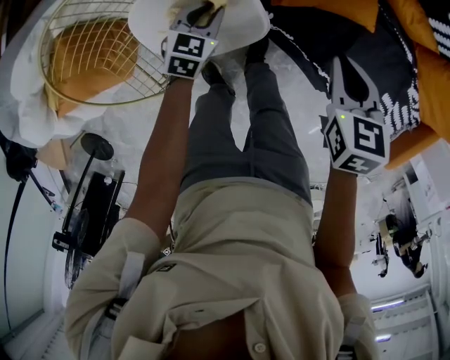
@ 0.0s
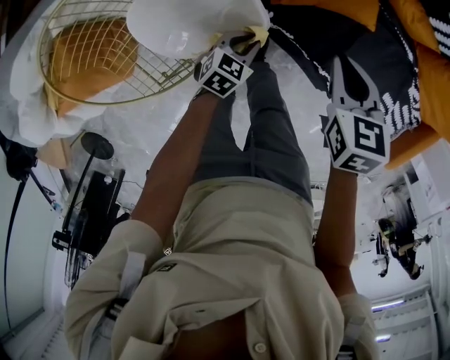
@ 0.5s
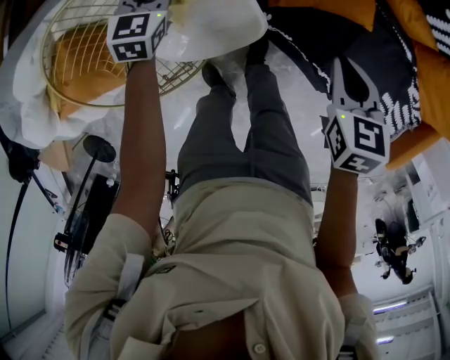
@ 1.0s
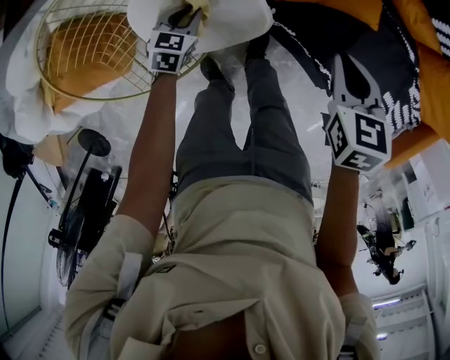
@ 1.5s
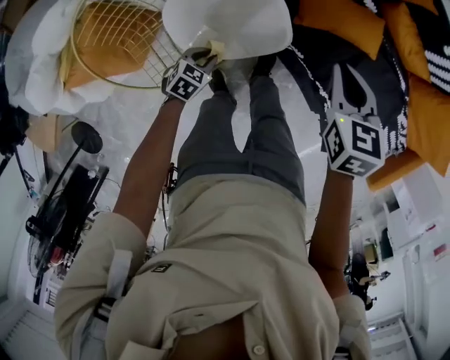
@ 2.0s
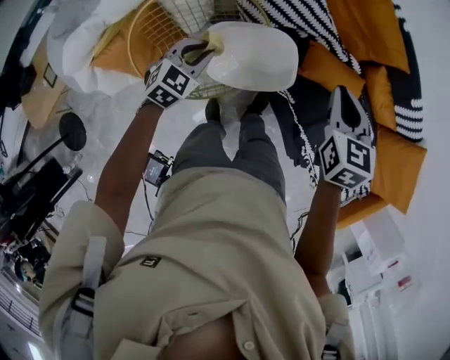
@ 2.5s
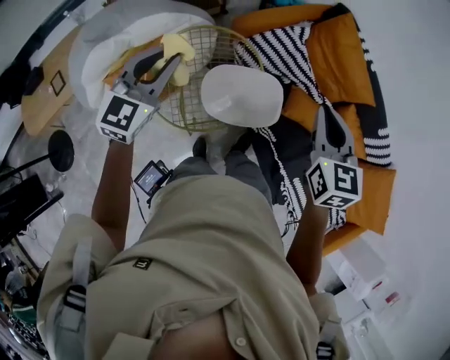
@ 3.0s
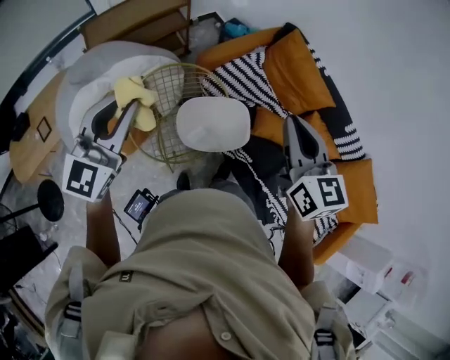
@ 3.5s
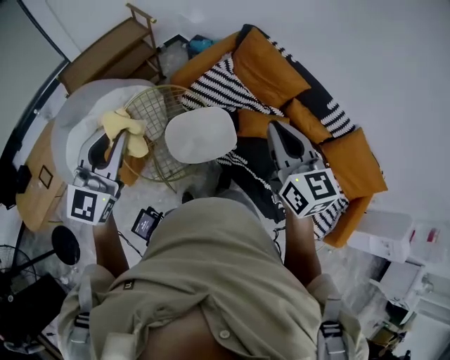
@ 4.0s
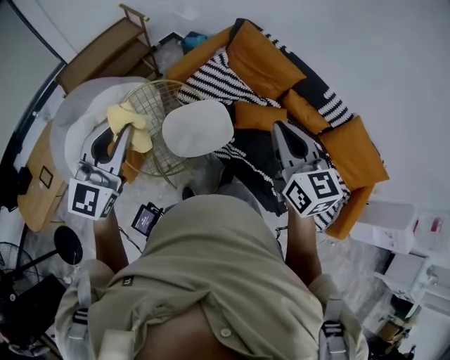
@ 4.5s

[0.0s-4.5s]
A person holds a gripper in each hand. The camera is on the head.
0.0s to 2.0s: The left gripper swings forward and backward, roughly 25 cm each way, with 2 reversals; the right gripper moves to the left and upward, some 10 cm.
2.0s to 4.5s: The right gripper goes roughly 40 cm upward, and tilts its fingers some 40 degrees upward. The left gripper travels upward by about 70 cm, and points its fingers approximately 60 degrees further upward.

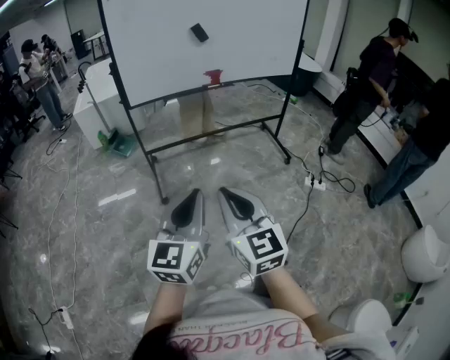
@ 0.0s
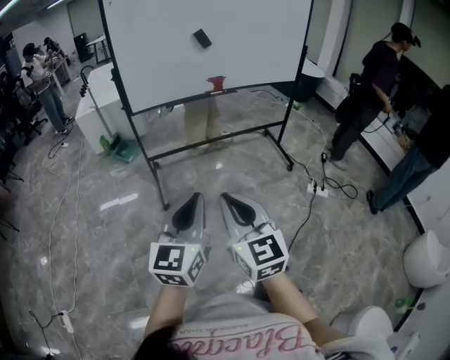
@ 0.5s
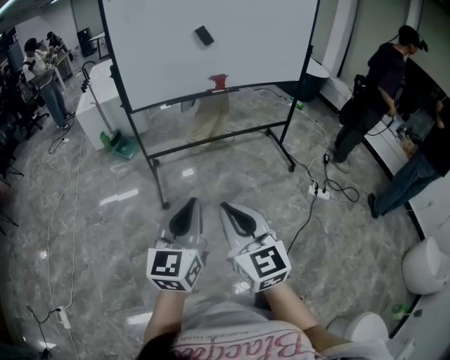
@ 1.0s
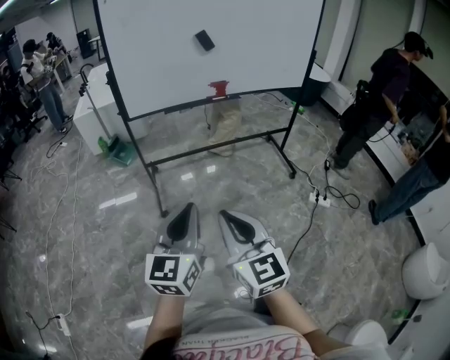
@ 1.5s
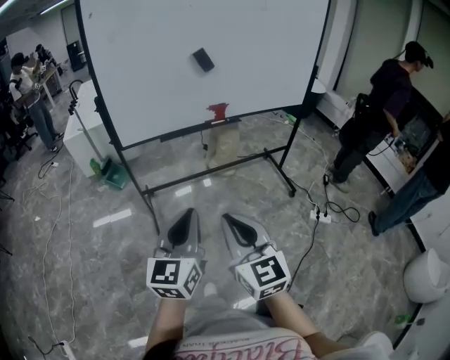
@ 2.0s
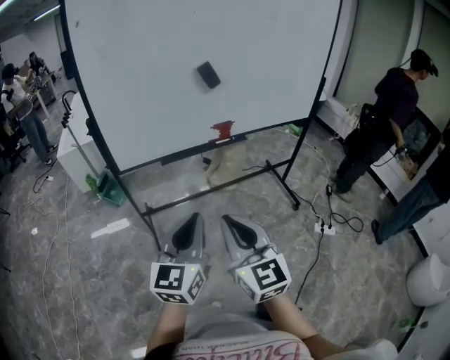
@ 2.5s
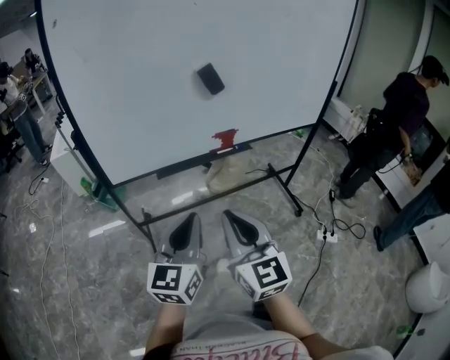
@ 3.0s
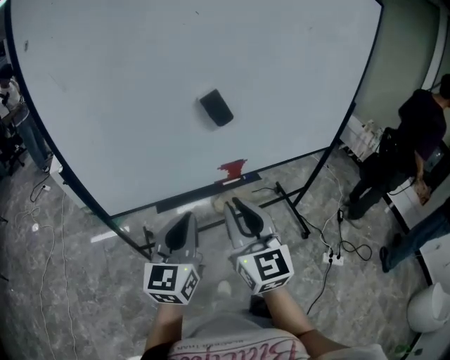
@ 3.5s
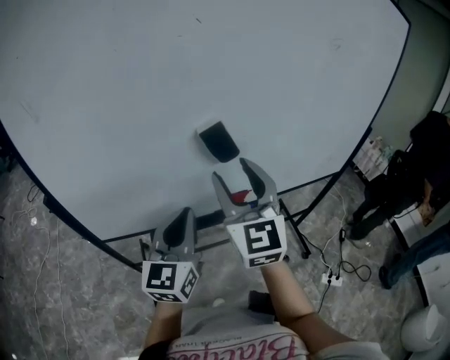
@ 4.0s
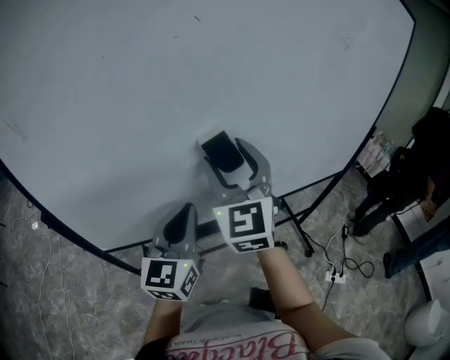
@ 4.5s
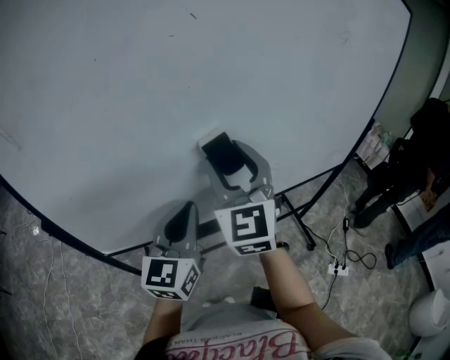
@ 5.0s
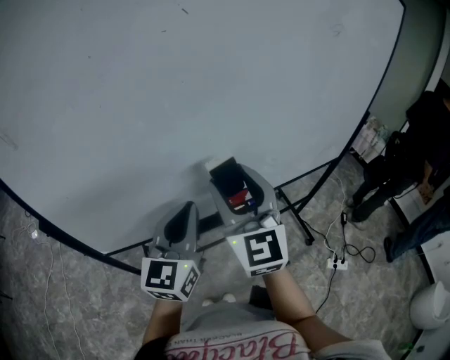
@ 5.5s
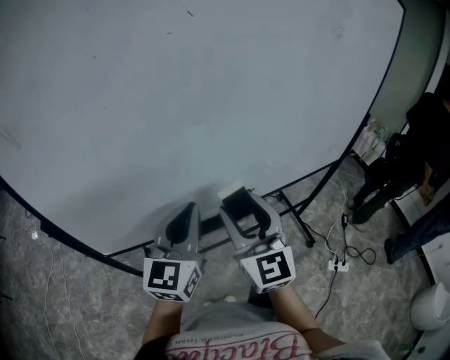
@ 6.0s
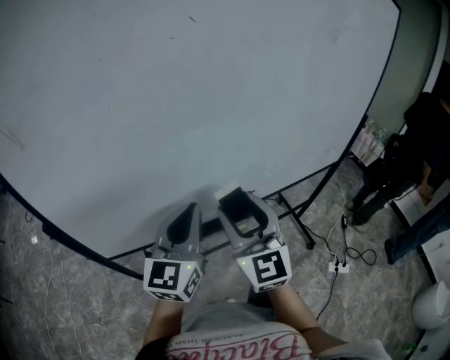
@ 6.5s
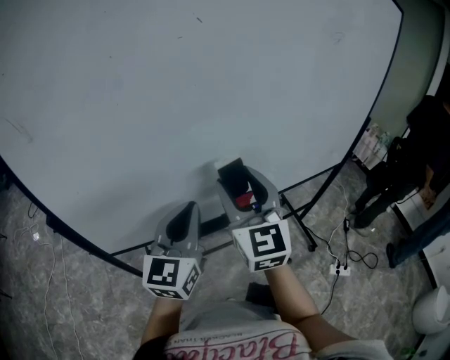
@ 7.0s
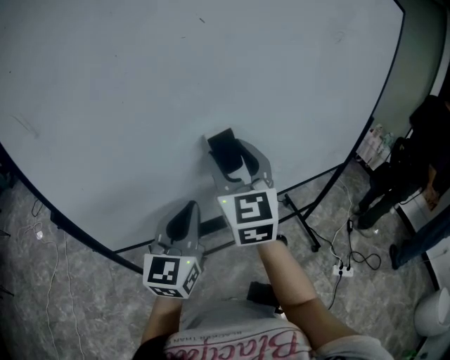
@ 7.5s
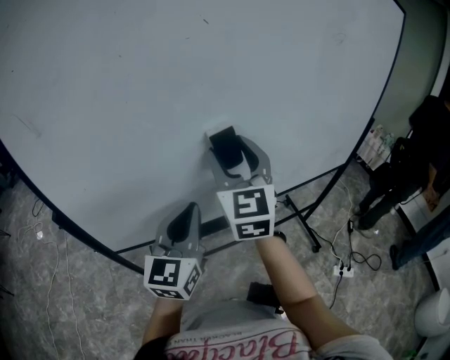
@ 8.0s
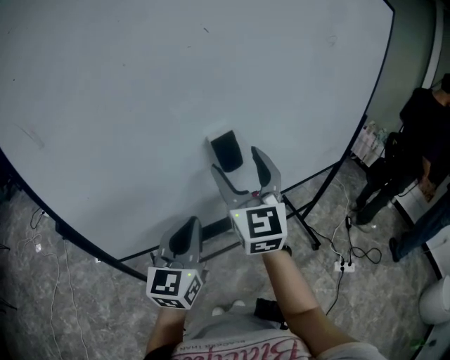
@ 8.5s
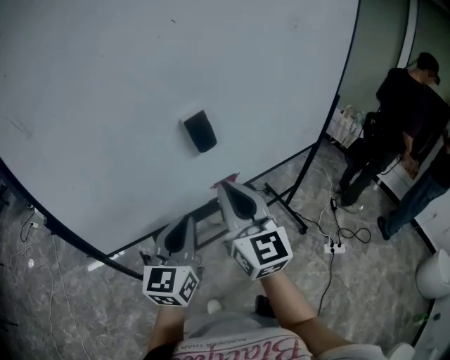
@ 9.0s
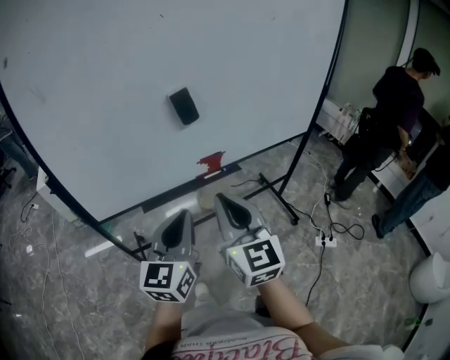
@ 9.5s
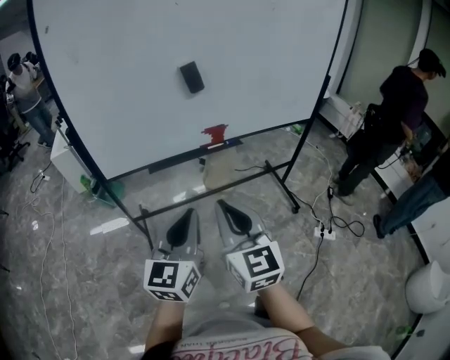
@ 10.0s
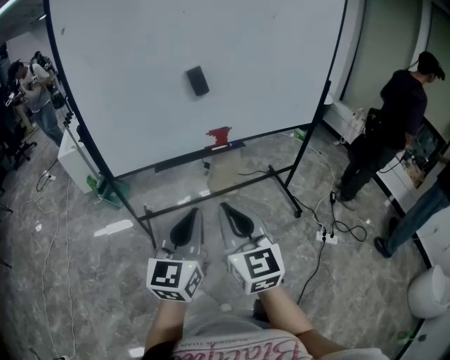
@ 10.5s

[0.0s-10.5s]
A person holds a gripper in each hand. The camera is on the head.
0.0s to 2.0s: The grippers both shift forward by about 20 cm.
2.0s to 4.0s: The pair of grippers is taken forward, roughly 50 cm. The right gripper opens.
4.0s to 6.5s: The right gripper goes roughly 5 cm downward.
6.5s to 8.5s: The right gripper is displaced upward and forward by some 10 cm.
8.5s to 10.5s: Both grippers move backward, some 30 cm. The right gripper closes up.

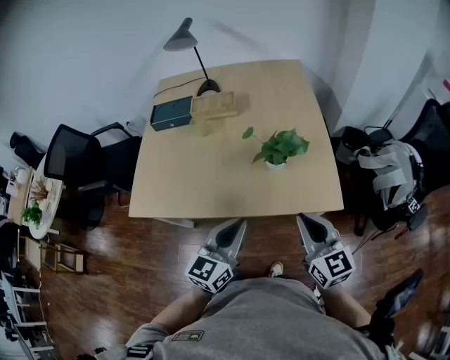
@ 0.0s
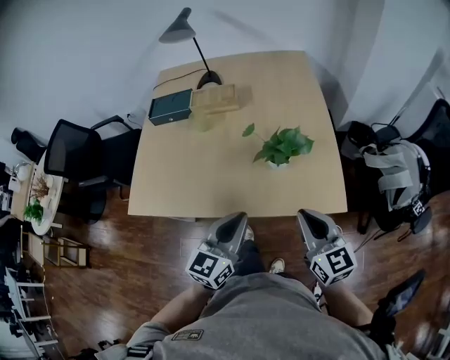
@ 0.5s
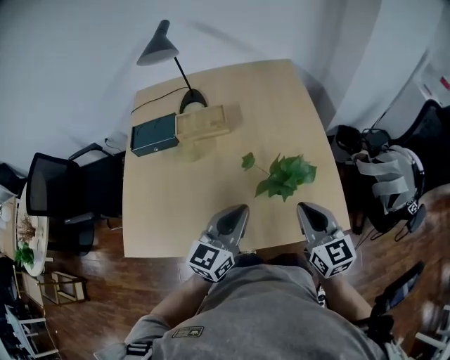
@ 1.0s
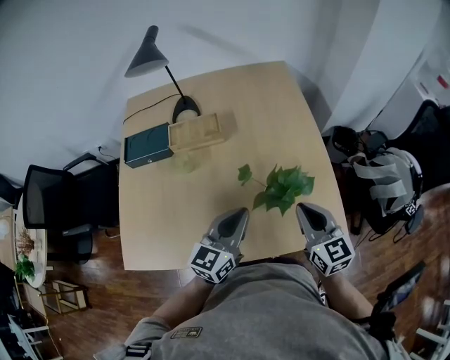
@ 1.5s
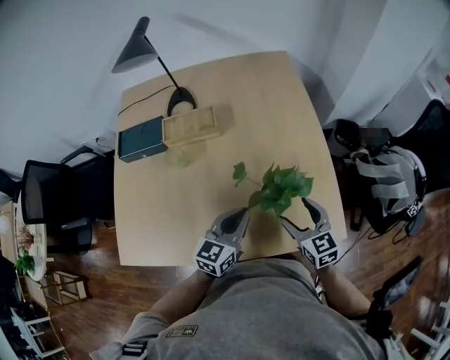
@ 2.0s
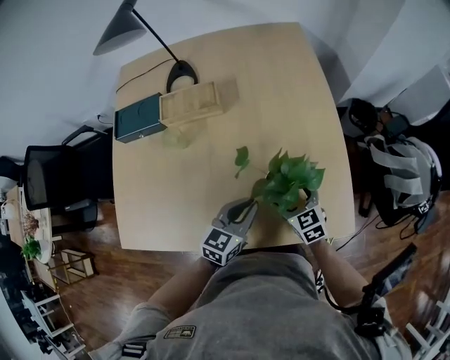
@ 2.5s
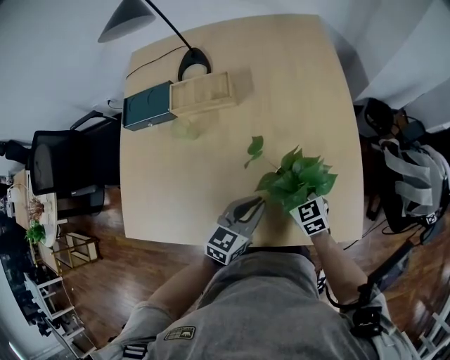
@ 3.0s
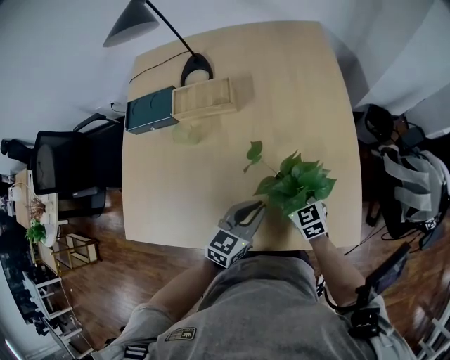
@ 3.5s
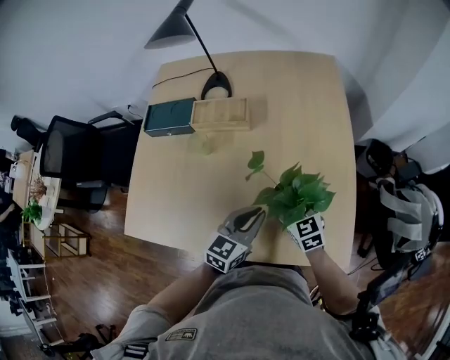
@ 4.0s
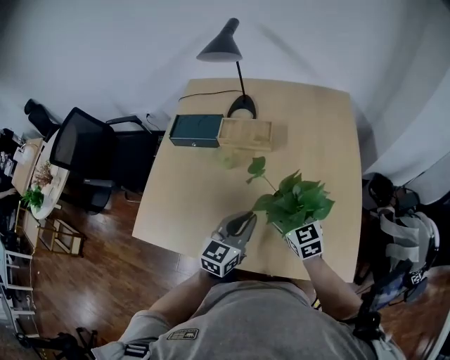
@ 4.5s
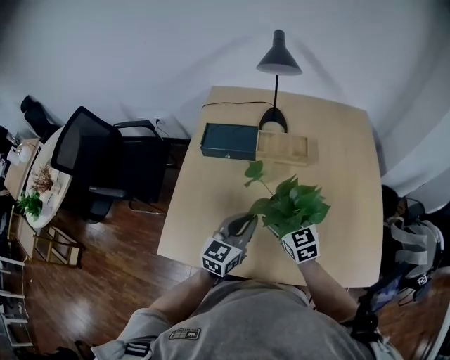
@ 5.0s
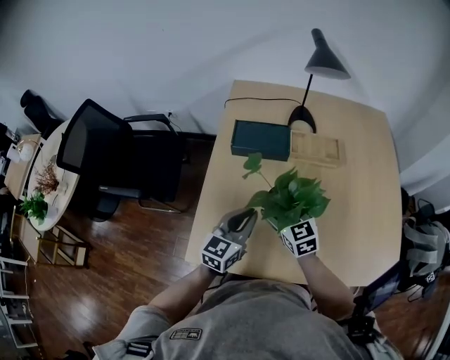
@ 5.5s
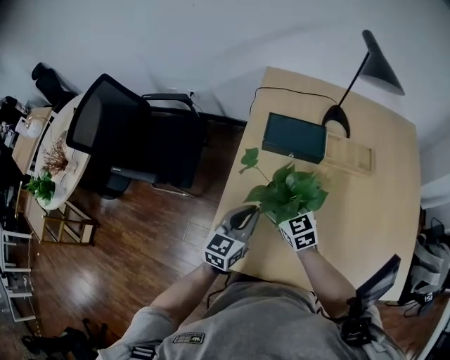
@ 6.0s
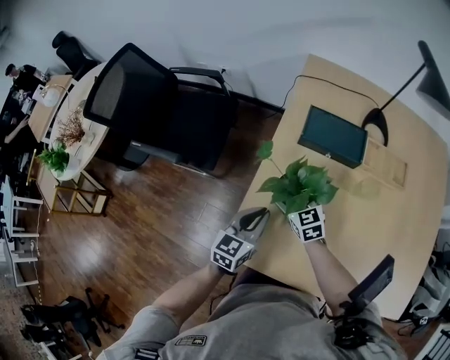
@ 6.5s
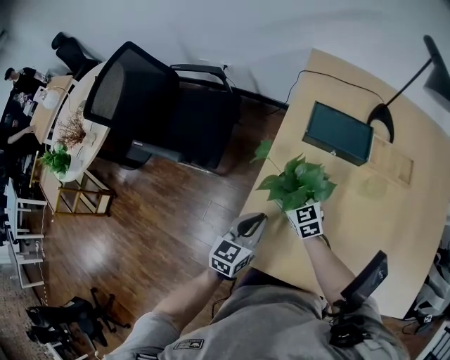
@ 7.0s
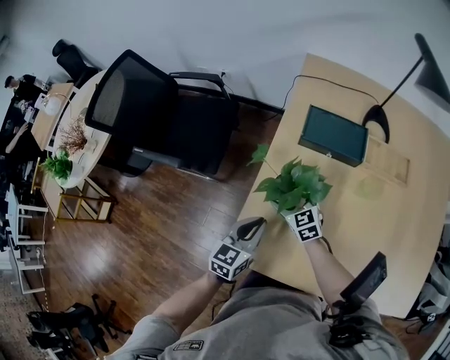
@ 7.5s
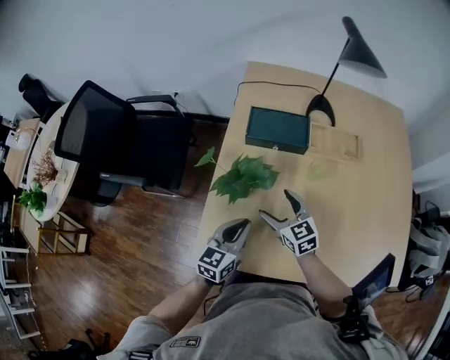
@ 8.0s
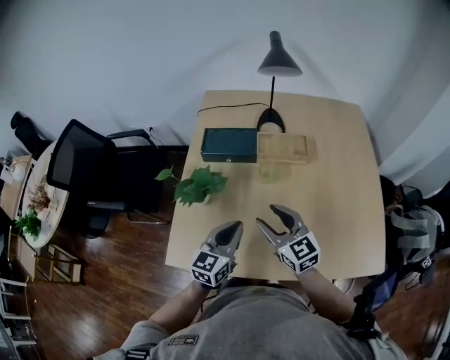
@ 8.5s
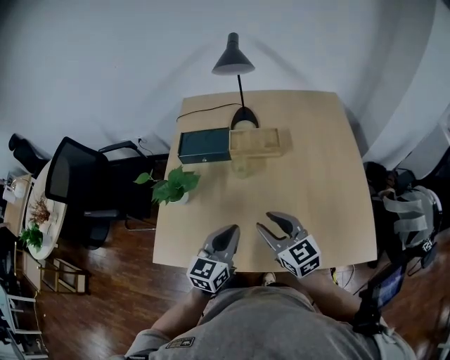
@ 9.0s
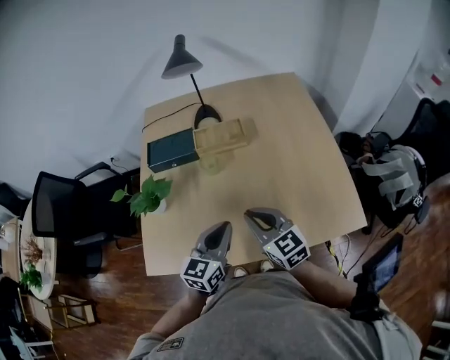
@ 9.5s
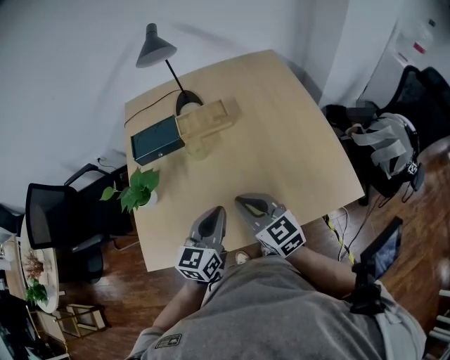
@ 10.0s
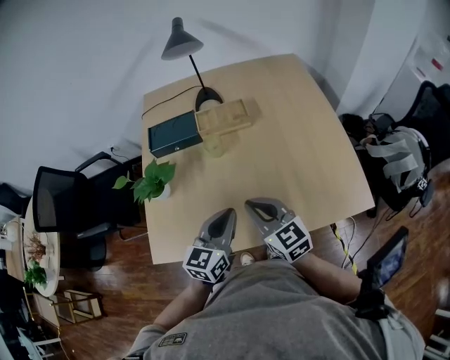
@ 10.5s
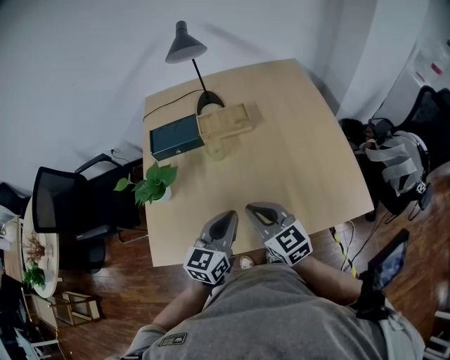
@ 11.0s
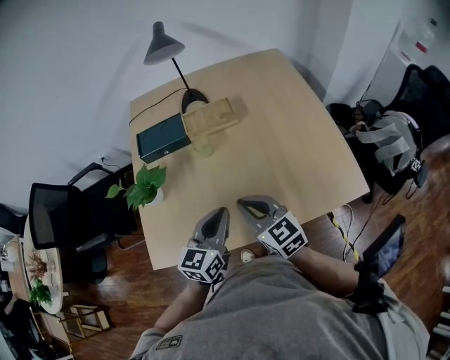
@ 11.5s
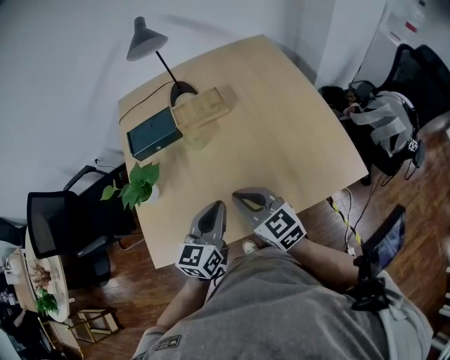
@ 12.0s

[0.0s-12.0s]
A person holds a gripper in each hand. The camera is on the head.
0.0s to 2.0s: Both grippers move forward and downward, about 25 cm. The right gripper opens.
2.0s to 4.0s: The right gripper is displaced forward and to the left by approximately 10 cm.
4.0s to 6.0s: The pair of grippers is taken to the left, about 50 cm.
6.0s to 8.0s: The left gripper heads backward, covering some 5 cm, and moves about 5 cm to the left and comes back, while the right gripper moves approximately 10 cm to the left and comes back.
8.0s to 10.0s: The left gripper goes roughly 25 cm to the right, while the right gripper is displaced to the right, backward and upward by about 30 cm, and closes its fingers.
10.0s to 12.0s: There are only small adjustments of the grippers.
